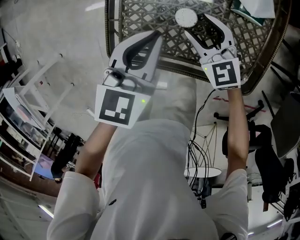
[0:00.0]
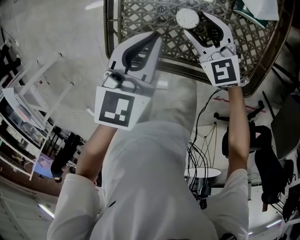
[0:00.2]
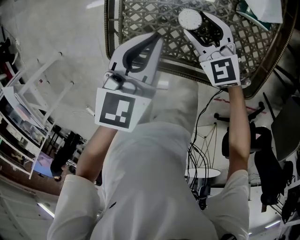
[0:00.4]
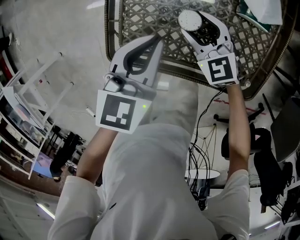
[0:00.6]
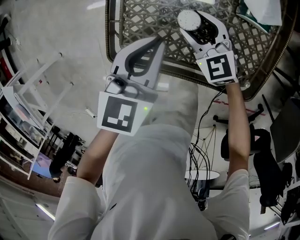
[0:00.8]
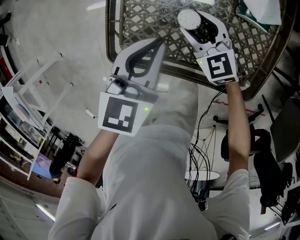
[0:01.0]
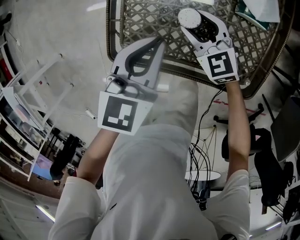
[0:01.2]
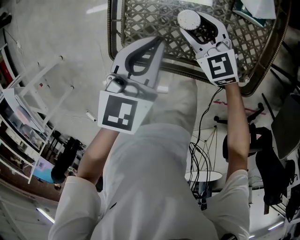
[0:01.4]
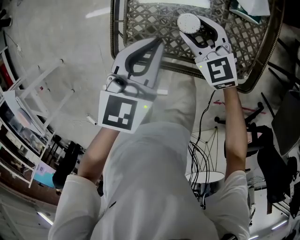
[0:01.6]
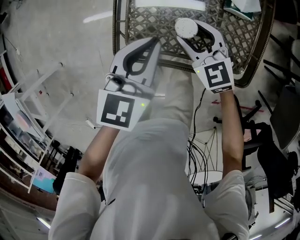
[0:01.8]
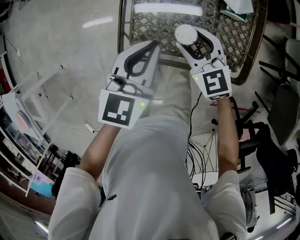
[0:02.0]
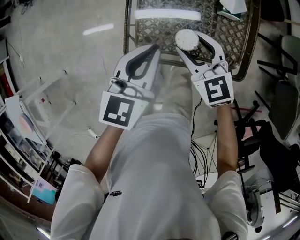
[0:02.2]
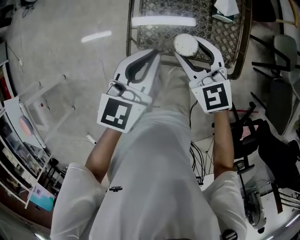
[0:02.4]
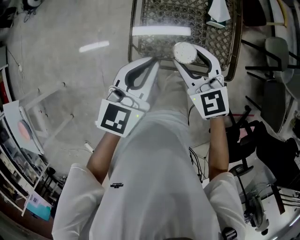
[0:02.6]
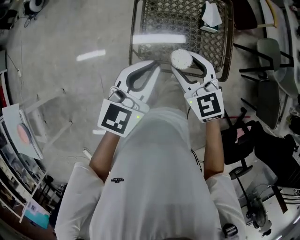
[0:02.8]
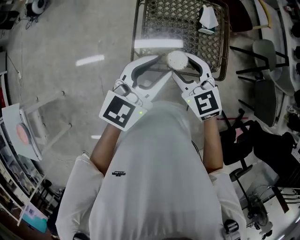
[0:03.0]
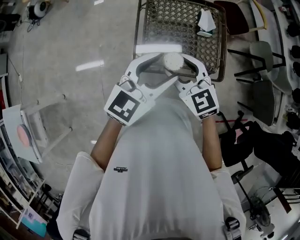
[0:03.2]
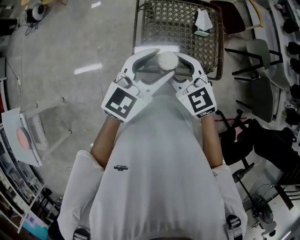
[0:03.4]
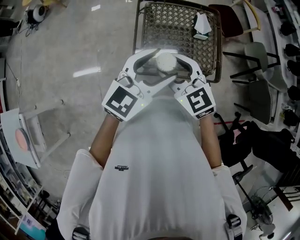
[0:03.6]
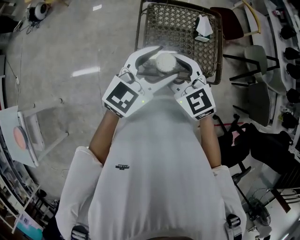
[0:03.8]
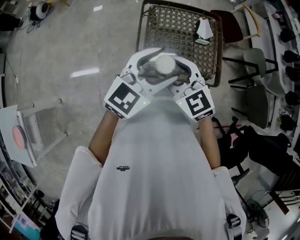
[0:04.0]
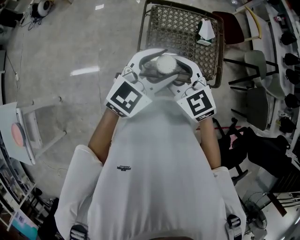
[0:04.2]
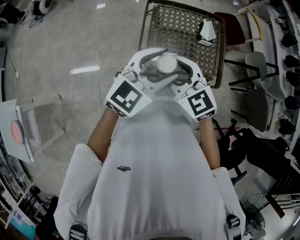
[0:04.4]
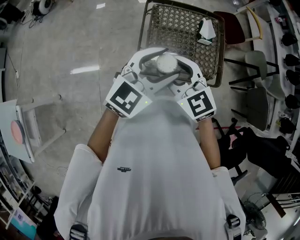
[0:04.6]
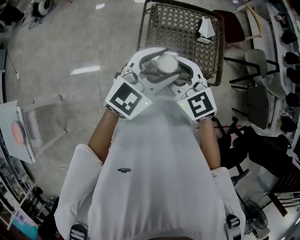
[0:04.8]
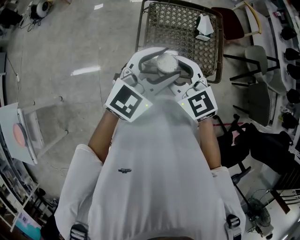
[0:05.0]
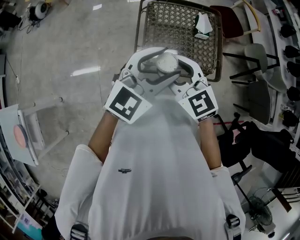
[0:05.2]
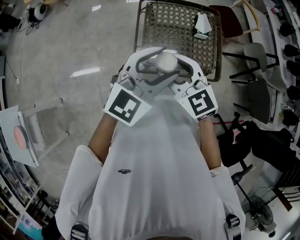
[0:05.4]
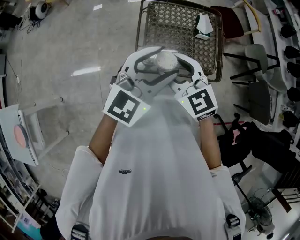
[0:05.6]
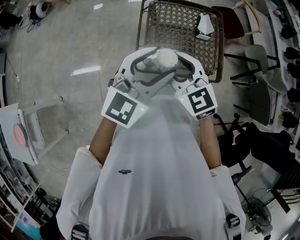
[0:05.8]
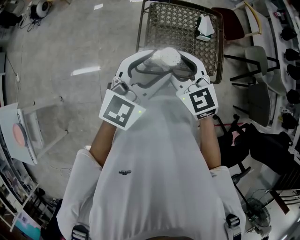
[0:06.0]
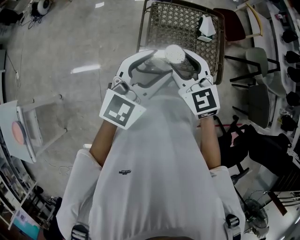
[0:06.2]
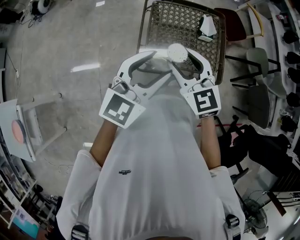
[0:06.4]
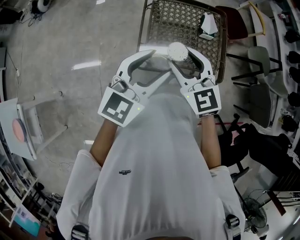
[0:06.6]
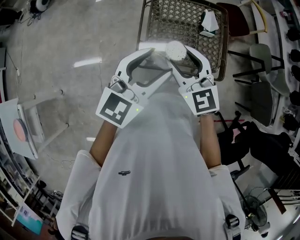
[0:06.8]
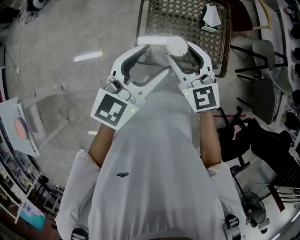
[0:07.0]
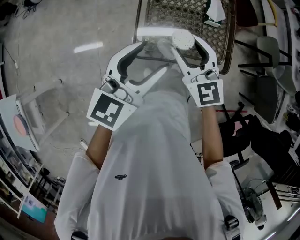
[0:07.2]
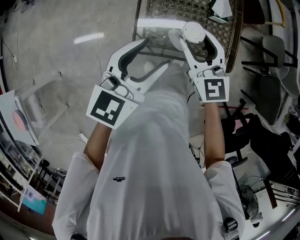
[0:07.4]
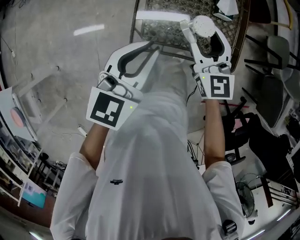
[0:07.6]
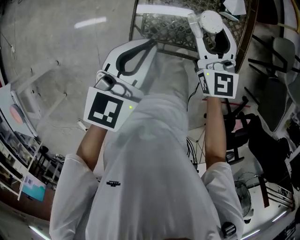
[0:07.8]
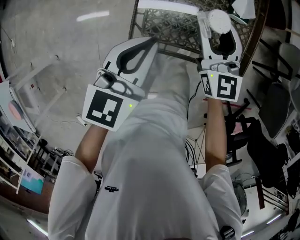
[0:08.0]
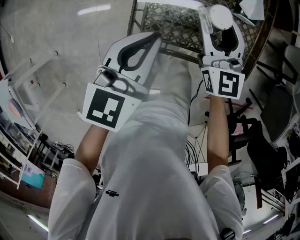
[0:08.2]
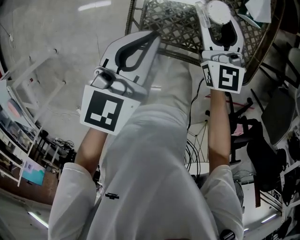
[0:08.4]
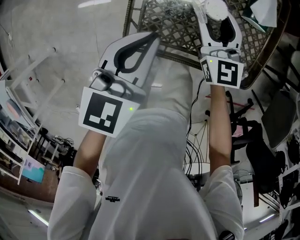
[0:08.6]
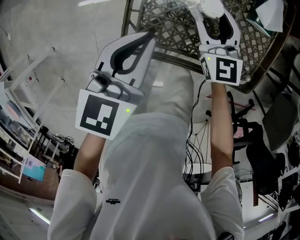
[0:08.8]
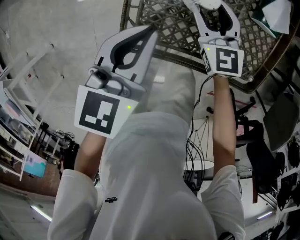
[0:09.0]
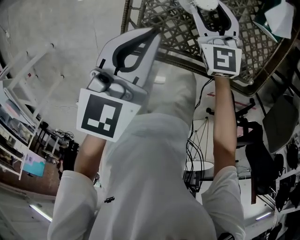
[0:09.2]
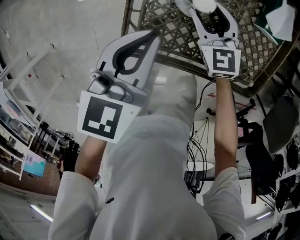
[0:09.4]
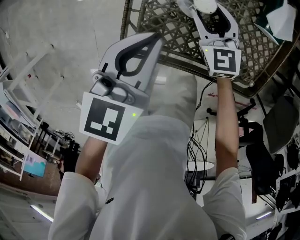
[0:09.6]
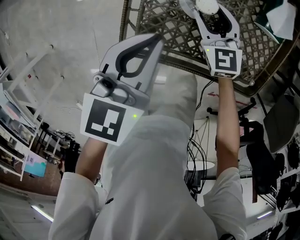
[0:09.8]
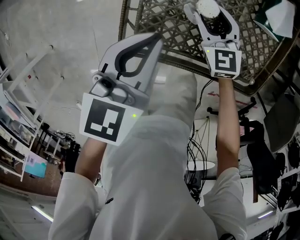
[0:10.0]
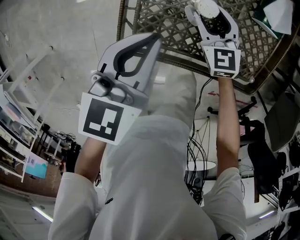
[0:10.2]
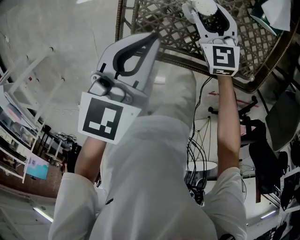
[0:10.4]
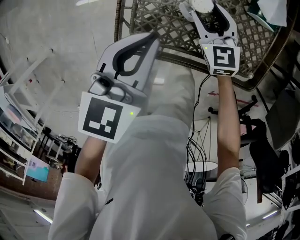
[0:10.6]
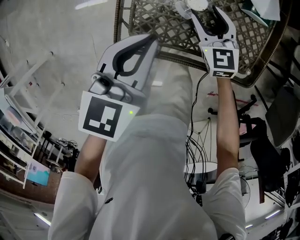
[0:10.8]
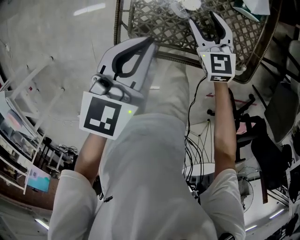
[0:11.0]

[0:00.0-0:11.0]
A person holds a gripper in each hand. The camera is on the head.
0:00.0 to 0:01.6: The grippers make only small movements.
0:01.6 to 0:03.2: The two grippers go some 35 cm upward and backward. The left gripper turns by about 30 degrees, and opens.
0:03.2 to 0:04.8: The right gripper travels to the left by approximately 5 cm.
0:04.8 to 0:06.2: There are only small adjustments of the grippers.
0:06.2 to 0:07.8: The left gripper goes about 15 cm downward and forward, changes its angle by roughly 20 degrees, and closes. Meanwhile the right gripper moves forward, downward and to the right, roughly 20 cm, and changes its angle by about 20 degrees.
0:07.8 to 0:09.4: The left gripper moves downward and forward, roughly 20 cm; the right gripper moves downward, roughly 25 cm, and rotates approximately 20 degrees.
0:09.4 to 0:11.0: The left gripper ends up about 5 cm from where it was; the right gripper moves to the right and backward, approximately 10 cm.

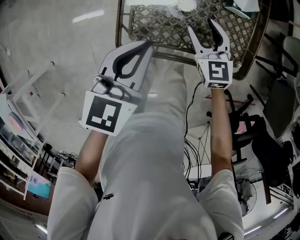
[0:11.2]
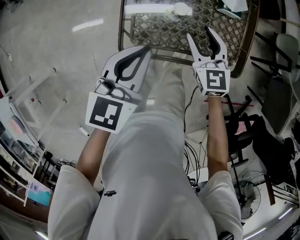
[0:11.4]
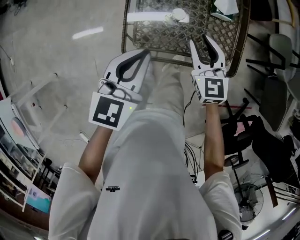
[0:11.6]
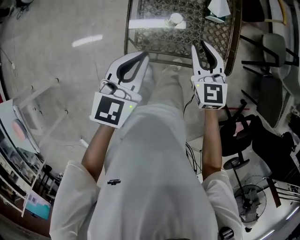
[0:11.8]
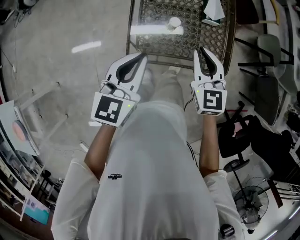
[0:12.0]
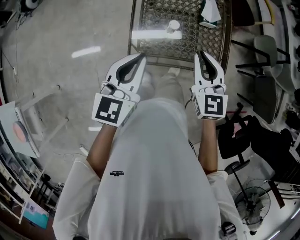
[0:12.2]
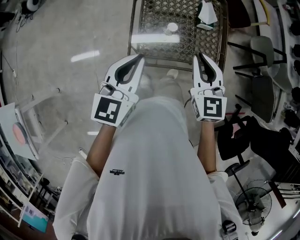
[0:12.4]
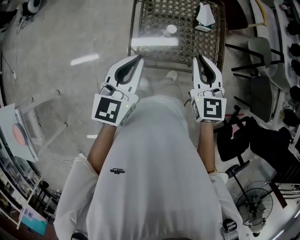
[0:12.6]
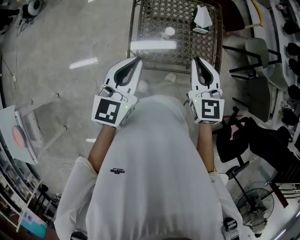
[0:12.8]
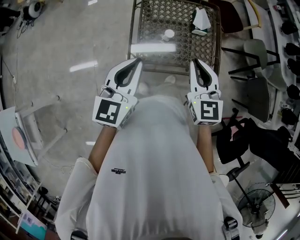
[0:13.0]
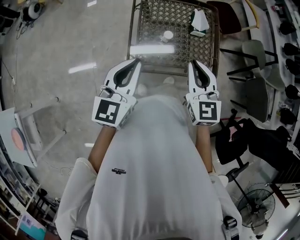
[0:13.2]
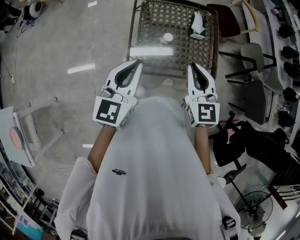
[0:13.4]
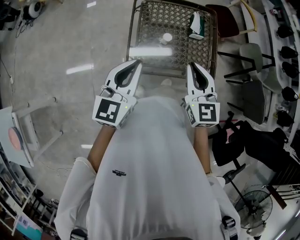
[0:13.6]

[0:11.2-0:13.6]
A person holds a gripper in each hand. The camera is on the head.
0:11.2 to 0:12.4: The left gripper shifts approximately 20 cm upward and backward; the right gripper is displaced upward and backward by some 30 cm, and closes its fingers.
0:12.4 to 0:13.6: The right gripper shifts by some 5 cm.

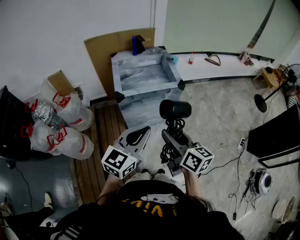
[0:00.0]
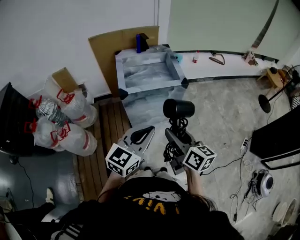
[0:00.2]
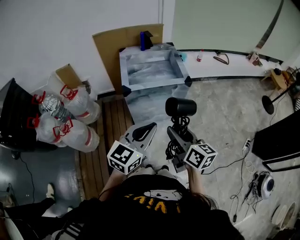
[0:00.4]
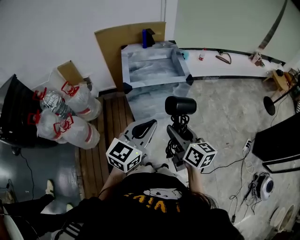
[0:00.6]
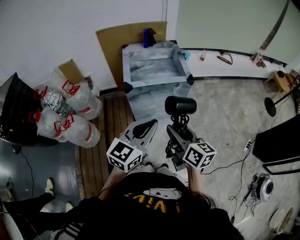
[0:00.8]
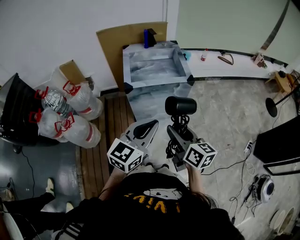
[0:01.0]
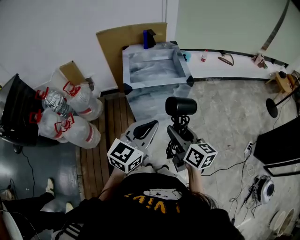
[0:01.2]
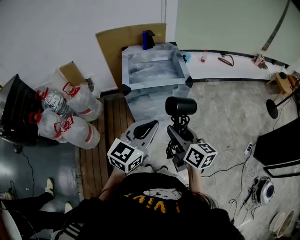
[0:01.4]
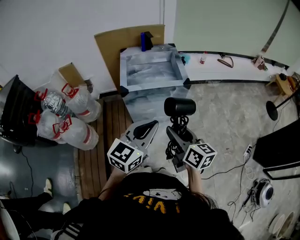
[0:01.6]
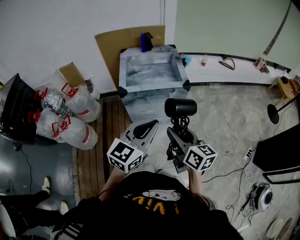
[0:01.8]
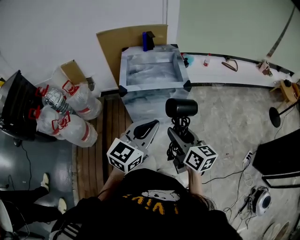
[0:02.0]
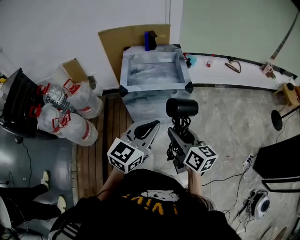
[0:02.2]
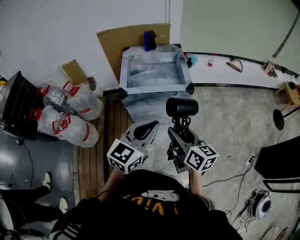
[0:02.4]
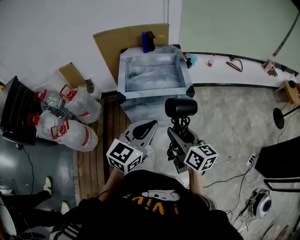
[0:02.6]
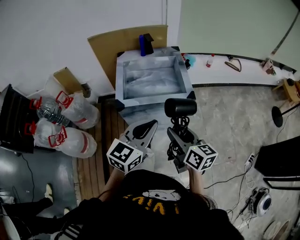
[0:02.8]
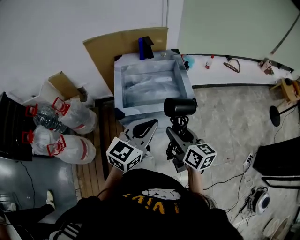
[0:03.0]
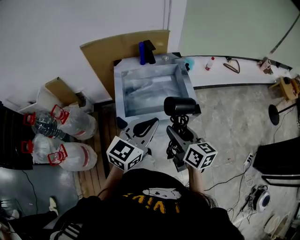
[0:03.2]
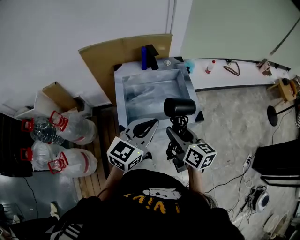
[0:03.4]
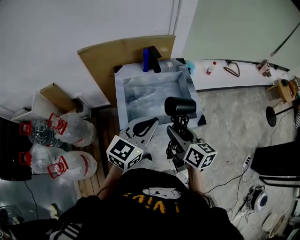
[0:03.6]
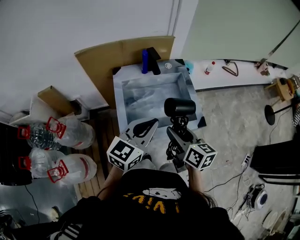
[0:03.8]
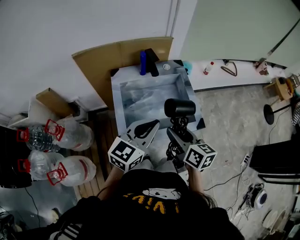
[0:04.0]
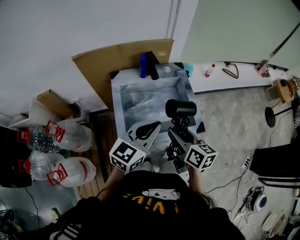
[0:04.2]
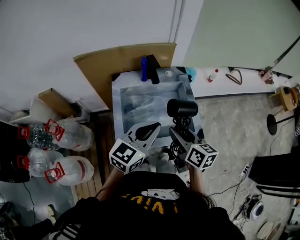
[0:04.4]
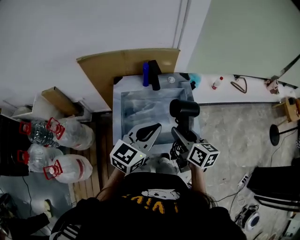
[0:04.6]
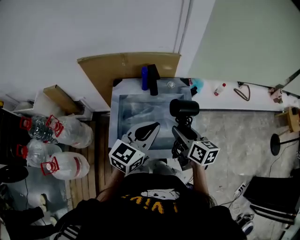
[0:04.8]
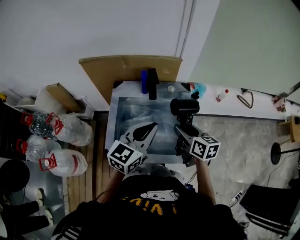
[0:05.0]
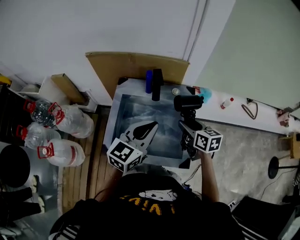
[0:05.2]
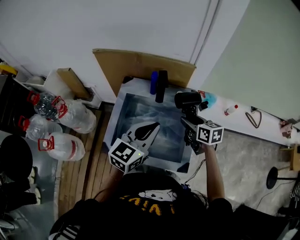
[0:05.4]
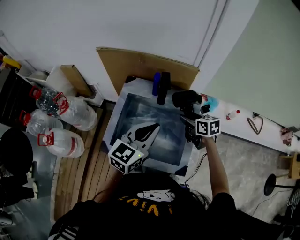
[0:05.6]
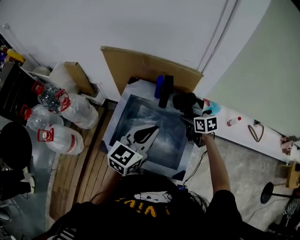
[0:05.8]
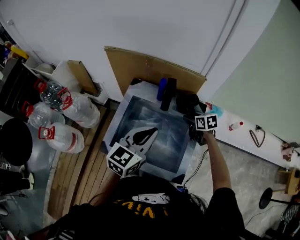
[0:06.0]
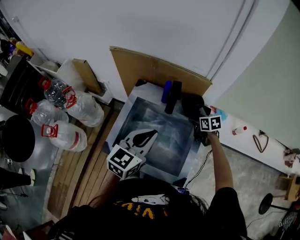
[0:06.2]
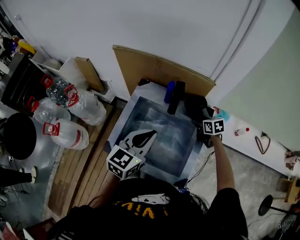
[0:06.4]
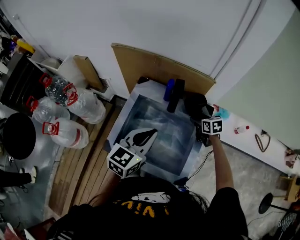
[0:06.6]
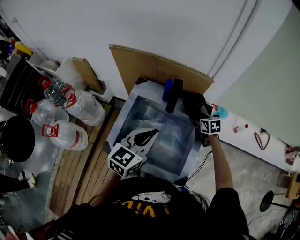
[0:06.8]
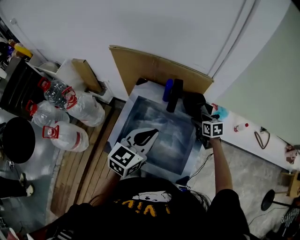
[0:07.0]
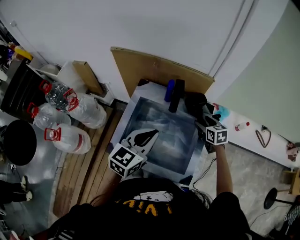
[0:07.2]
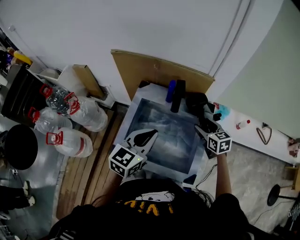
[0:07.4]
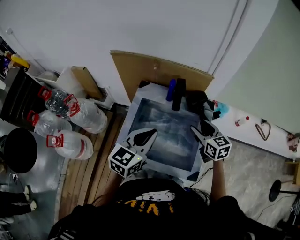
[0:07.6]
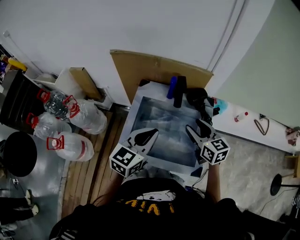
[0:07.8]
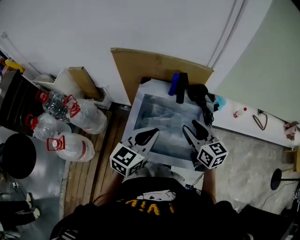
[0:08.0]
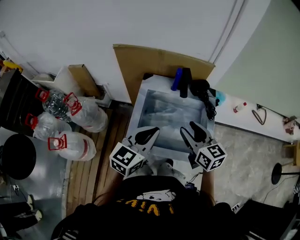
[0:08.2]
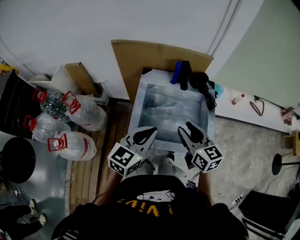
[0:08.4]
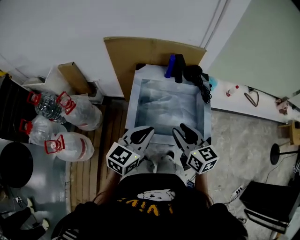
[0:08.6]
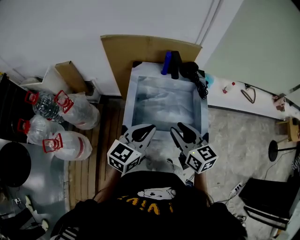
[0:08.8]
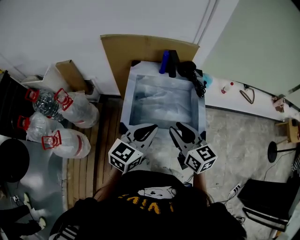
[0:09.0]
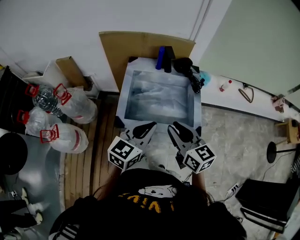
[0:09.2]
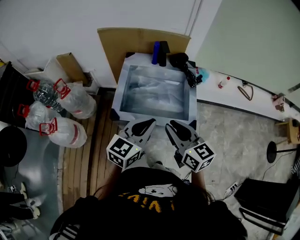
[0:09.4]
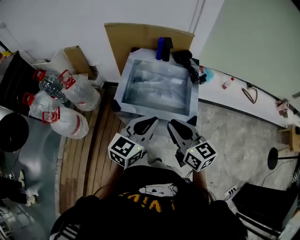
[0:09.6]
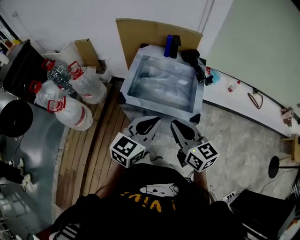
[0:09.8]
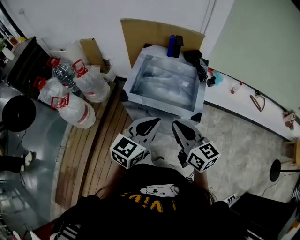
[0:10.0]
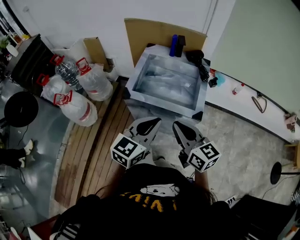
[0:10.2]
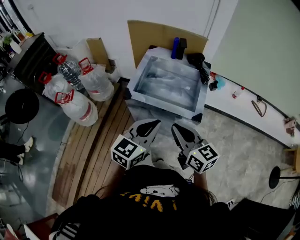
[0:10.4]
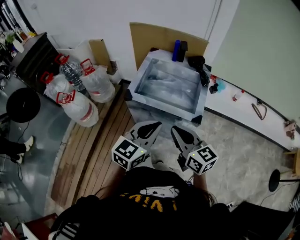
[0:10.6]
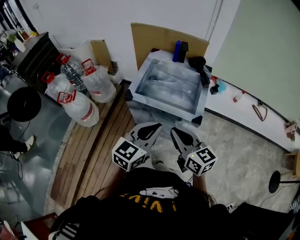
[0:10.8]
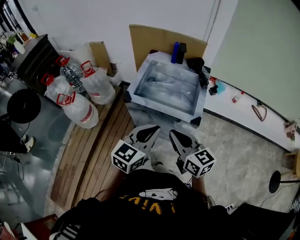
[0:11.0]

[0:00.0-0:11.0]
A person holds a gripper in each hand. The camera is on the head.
0:00.0 to 0:01.6: Both grippers move to the right, approximately 5 cm.
0:01.6 to 0:03.2: Both grippers travel together forward, some 25 cm.
0:03.2 to 0:04.8: The grippers both shift forward by some 20 cm.
0:04.8 to 0:06.2: The left gripper ends up about 5 cm from where it was, and turns by some 20 degrees; the right gripper changes place by roughly 30 cm, and changes its angle by some 50 degrees.
0:06.2 to 0:07.8: The left gripper travels to the left by roughly 5 cm. Meanwhile the right gripper travels upward, backward and to the left by some 25 cm, and rotates approximately 30 degrees.
0:07.8 to 0:09.4: The two grippers go some 20 cm backward. The right gripper closes its fingers.
0:09.4 to 0:11.0: Both grippers travel together backward, some 15 cm.
